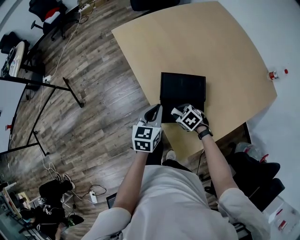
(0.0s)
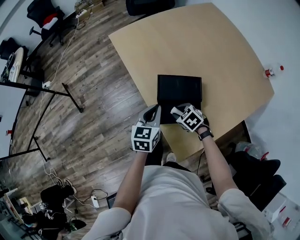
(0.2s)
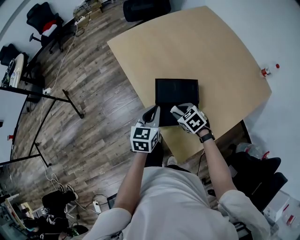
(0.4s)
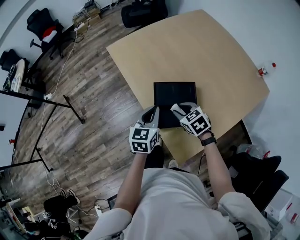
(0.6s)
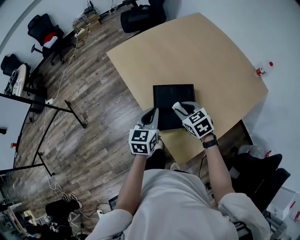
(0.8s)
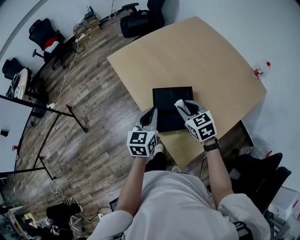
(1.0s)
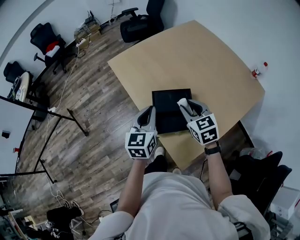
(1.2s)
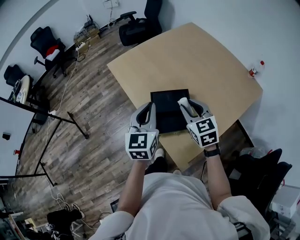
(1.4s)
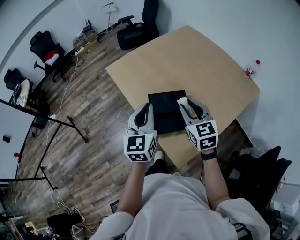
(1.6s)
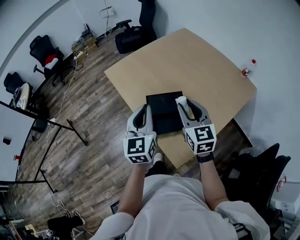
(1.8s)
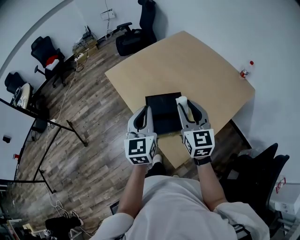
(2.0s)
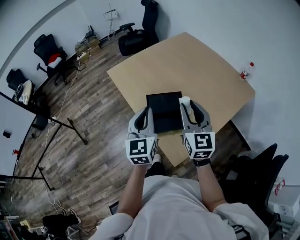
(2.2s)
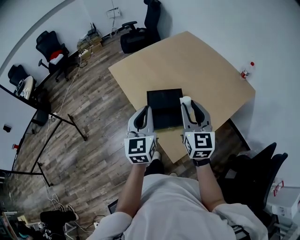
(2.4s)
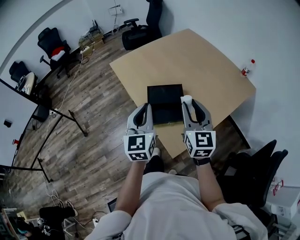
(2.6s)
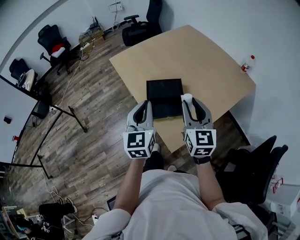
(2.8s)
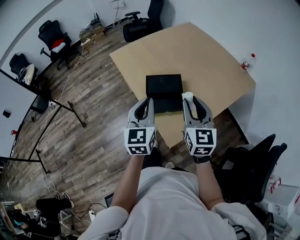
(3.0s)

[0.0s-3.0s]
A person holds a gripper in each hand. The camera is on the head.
0.0s to 1.6s: The left gripper travels upward by about 20 cm, and rotates some 20 degrees. Meanwhile the right gripper travels upward by about 30 cm, and points its fingers approximately 40 degrees further upward.
1.6s to 3.0s: Both grippers move backward, about 15 cm.

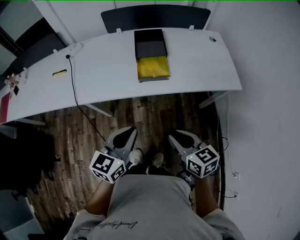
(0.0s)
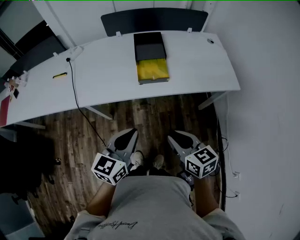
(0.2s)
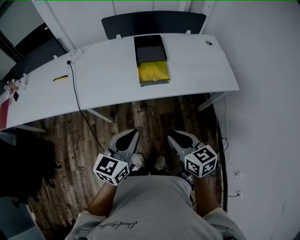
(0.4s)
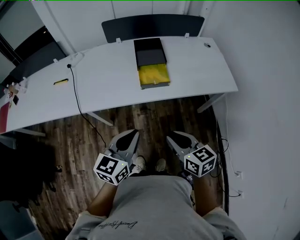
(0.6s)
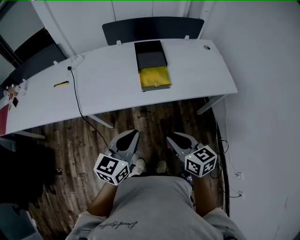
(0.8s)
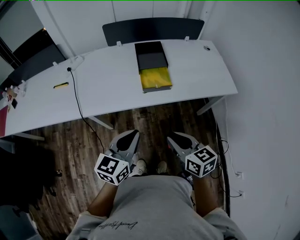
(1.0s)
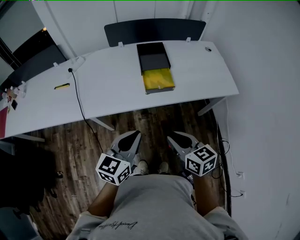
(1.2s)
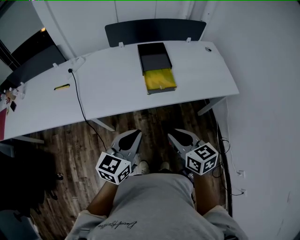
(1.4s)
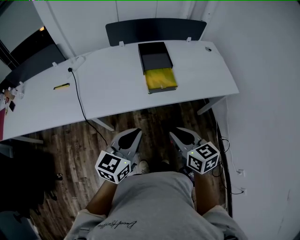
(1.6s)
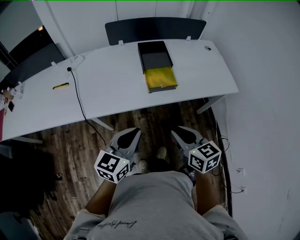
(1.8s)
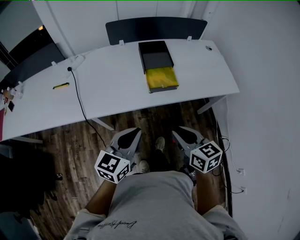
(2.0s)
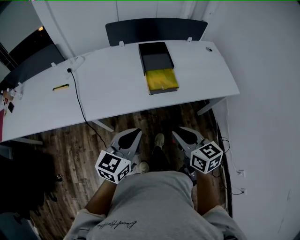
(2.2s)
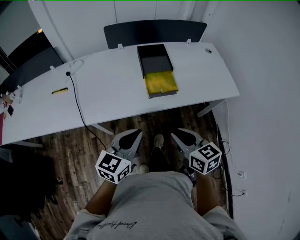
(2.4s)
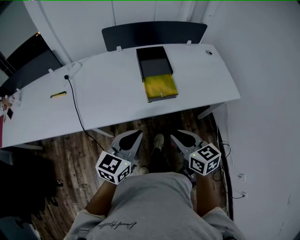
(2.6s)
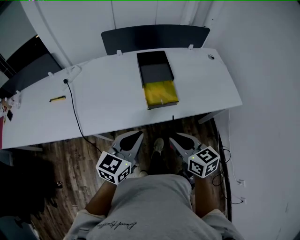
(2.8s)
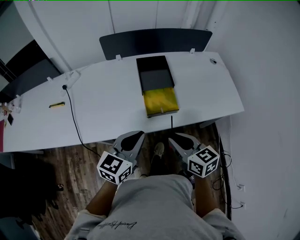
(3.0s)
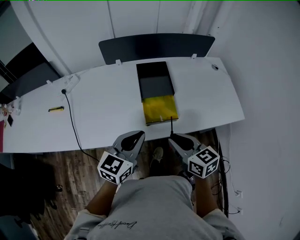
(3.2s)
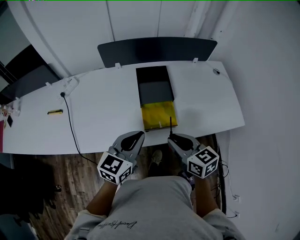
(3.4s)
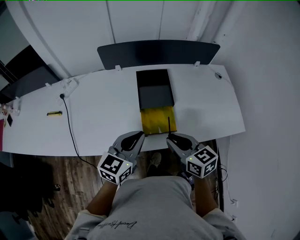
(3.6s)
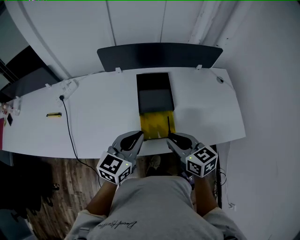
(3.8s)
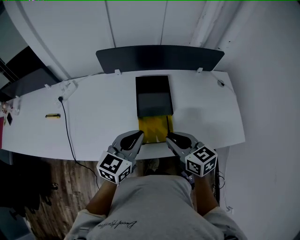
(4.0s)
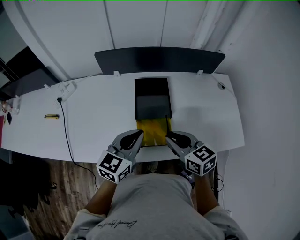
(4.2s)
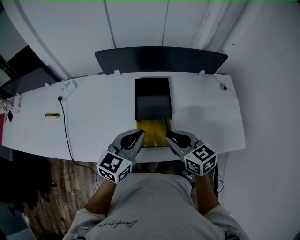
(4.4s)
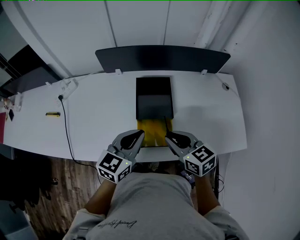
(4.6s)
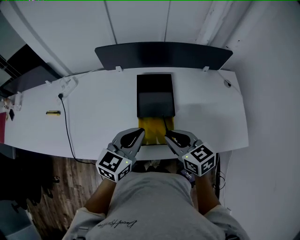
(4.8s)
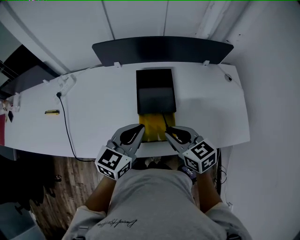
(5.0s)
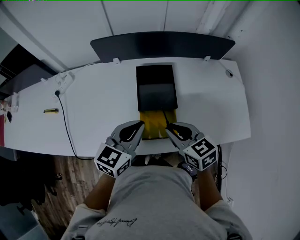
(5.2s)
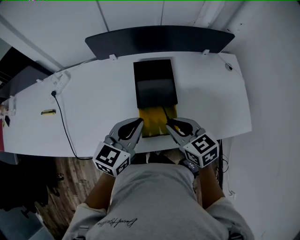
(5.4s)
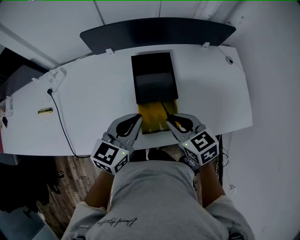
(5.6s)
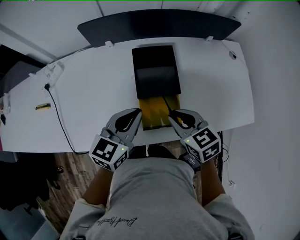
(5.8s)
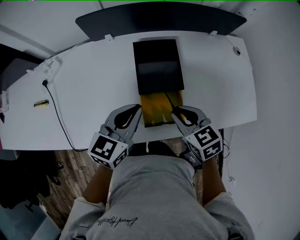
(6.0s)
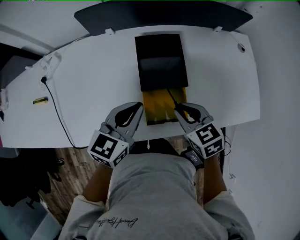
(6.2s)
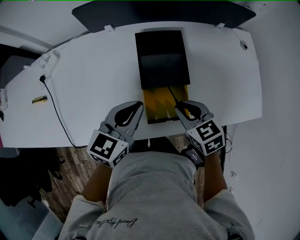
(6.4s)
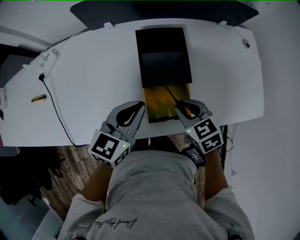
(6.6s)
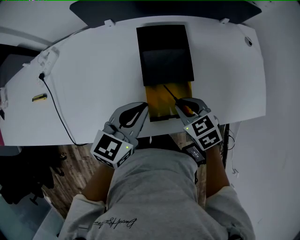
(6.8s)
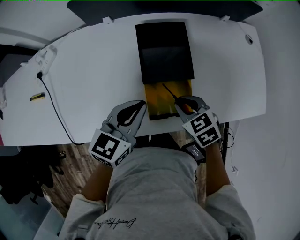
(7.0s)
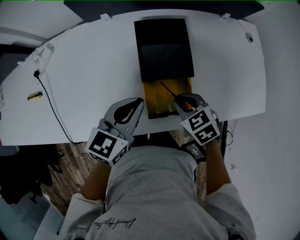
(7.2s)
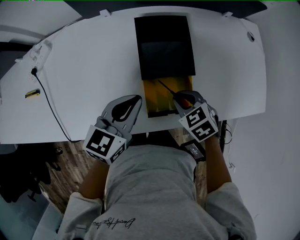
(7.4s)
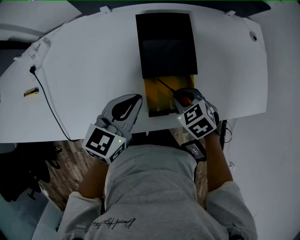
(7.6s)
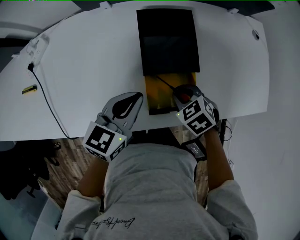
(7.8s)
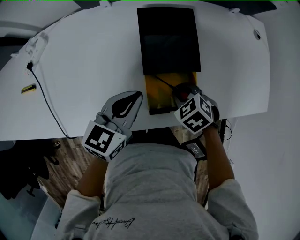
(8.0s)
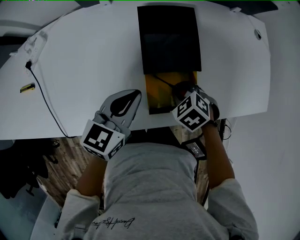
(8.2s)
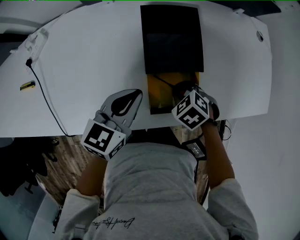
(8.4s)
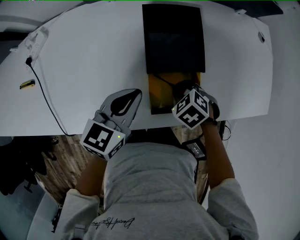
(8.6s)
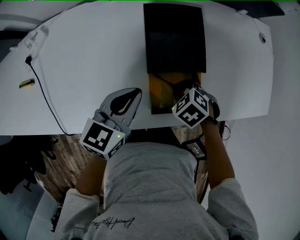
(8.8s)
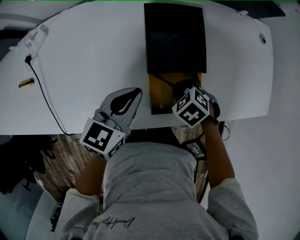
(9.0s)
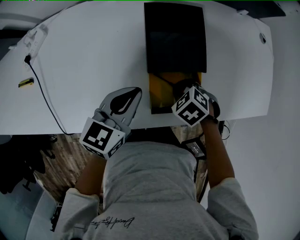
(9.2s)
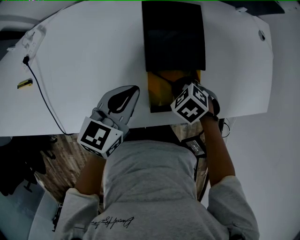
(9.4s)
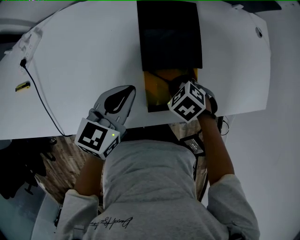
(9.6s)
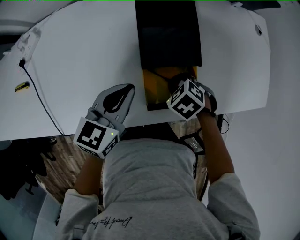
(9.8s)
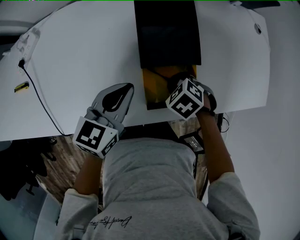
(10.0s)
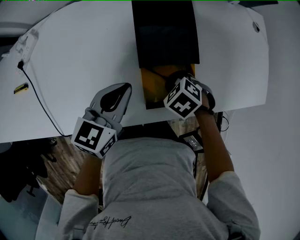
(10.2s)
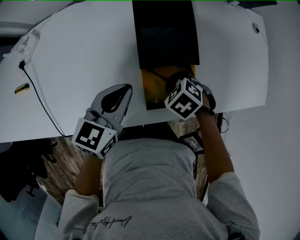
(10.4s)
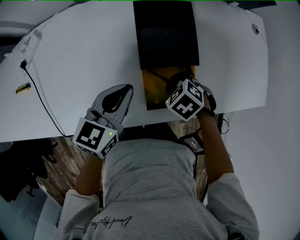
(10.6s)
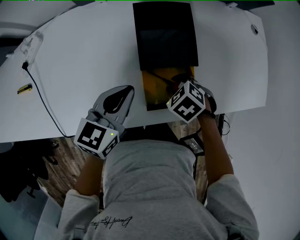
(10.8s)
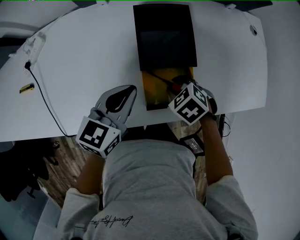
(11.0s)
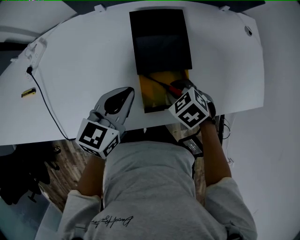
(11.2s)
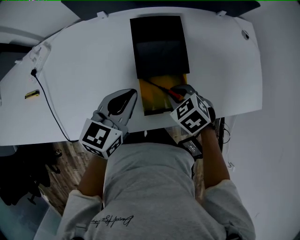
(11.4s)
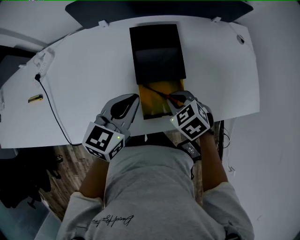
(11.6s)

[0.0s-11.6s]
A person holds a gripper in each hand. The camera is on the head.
0.0s to 1.4s: Both grippers travel together to the left, approximately 10 cm.
1.4s to 2.8s: The two grippers go approximately 10 cm forward.
2.8s to 4.4s: The two grippers go approximately 25 cm forward.
4.4s to 5.8s: The right gripper is displaced downward by about 5 cm. Meanwhile the left gripper shifts by about 5 cm.
5.8s to 7.2s: The right gripper travels downward by about 10 cm. Meanwhile the left gripper is displaced downward by some 5 cm.
7.2s to 8.8s: The right gripper moves downward, approximately 10 cm, and swivels approximately 20 degrees.
8.8s to 10.2s: The two grippers keep their place.
10.2s to 11.6s: The left gripper is displaced upward by about 5 cm. The right gripper is displaced upward by approximately 10 cm.

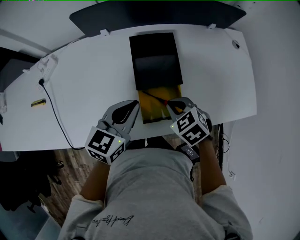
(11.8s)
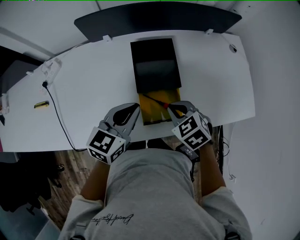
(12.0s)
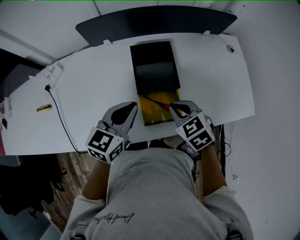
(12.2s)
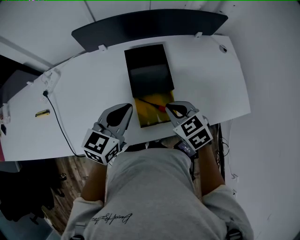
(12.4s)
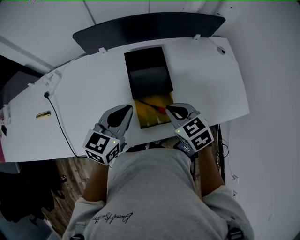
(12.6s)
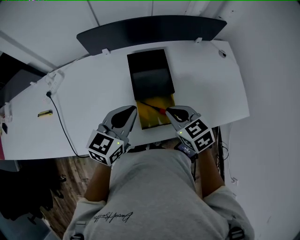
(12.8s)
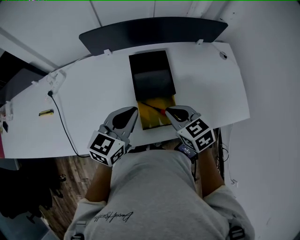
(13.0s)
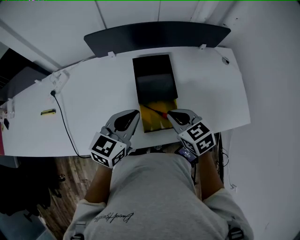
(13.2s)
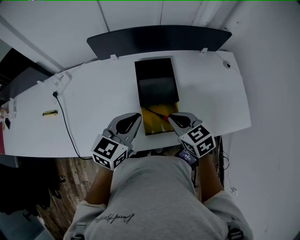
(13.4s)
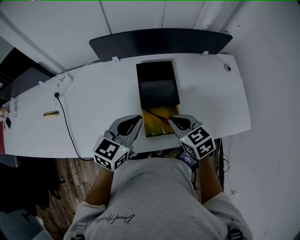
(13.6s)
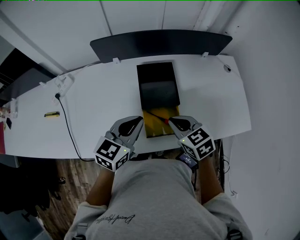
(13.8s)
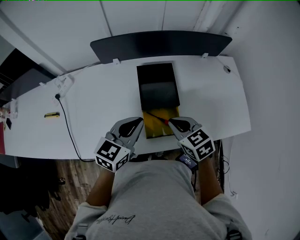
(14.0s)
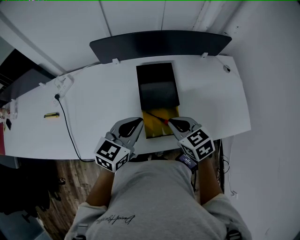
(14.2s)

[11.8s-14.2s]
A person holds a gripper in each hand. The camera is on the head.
11.8s to 13.0s: The right gripper moves upward, approximately 10 cm, and changes its angle by about 20 degrees; the left gripper goes approximately 5 cm upward.
13.0s to 14.2s: Both grippers stay put.

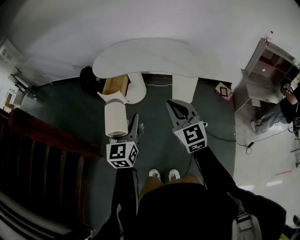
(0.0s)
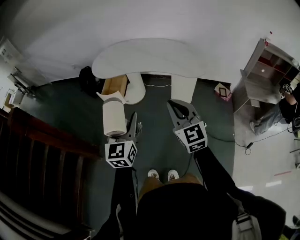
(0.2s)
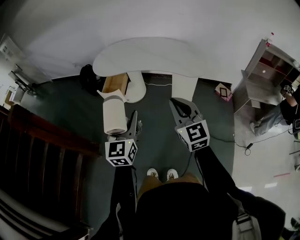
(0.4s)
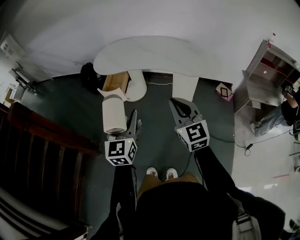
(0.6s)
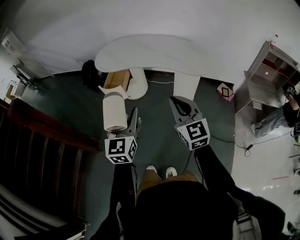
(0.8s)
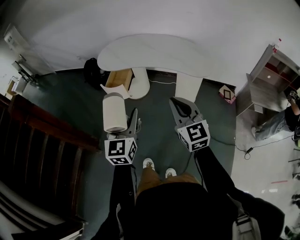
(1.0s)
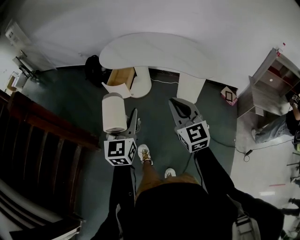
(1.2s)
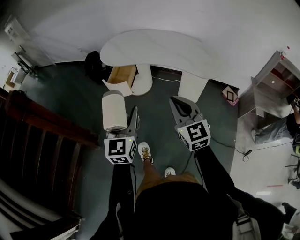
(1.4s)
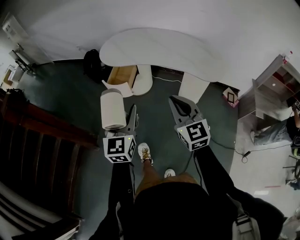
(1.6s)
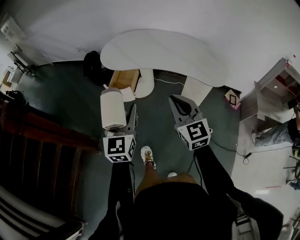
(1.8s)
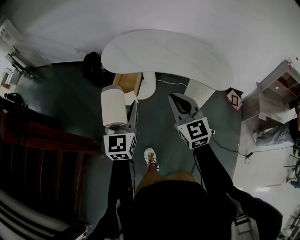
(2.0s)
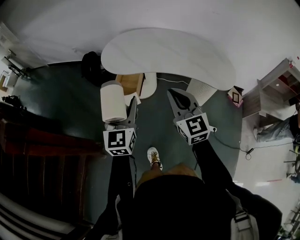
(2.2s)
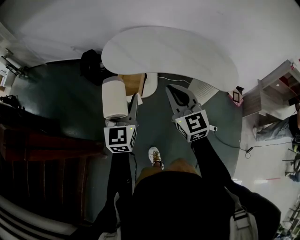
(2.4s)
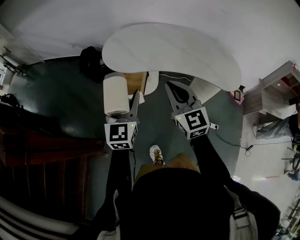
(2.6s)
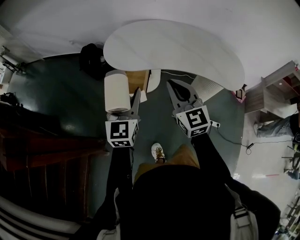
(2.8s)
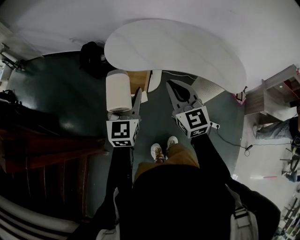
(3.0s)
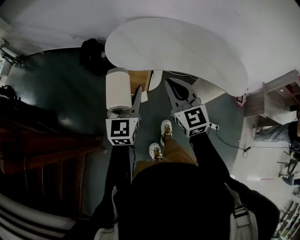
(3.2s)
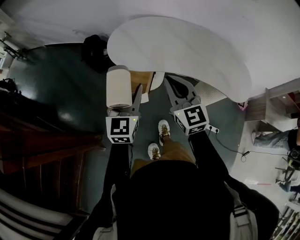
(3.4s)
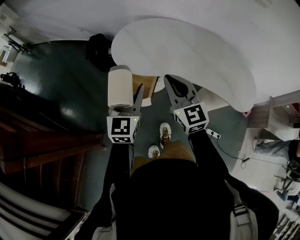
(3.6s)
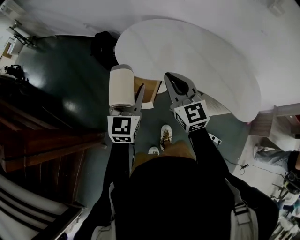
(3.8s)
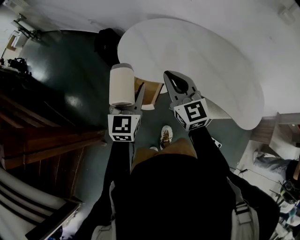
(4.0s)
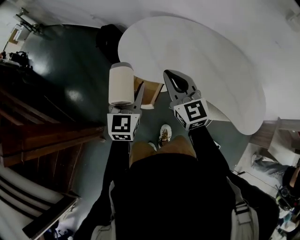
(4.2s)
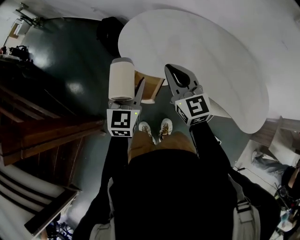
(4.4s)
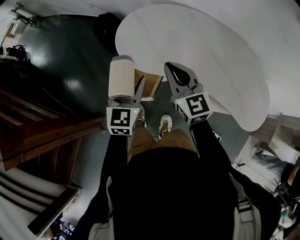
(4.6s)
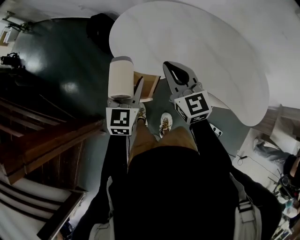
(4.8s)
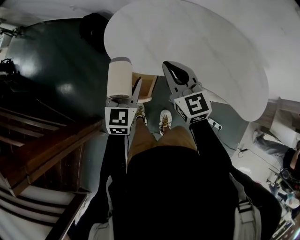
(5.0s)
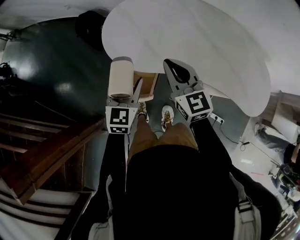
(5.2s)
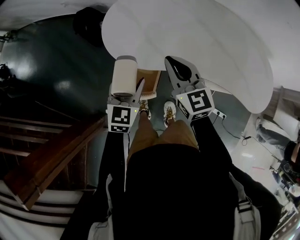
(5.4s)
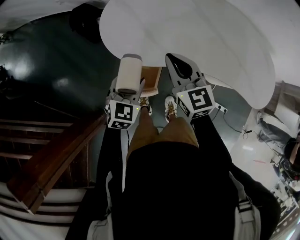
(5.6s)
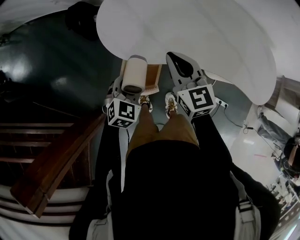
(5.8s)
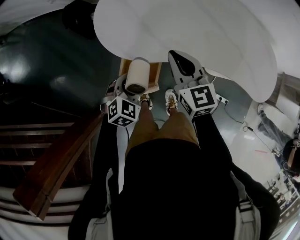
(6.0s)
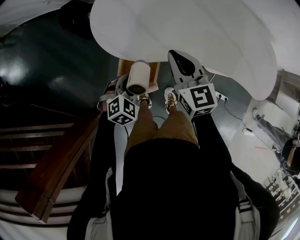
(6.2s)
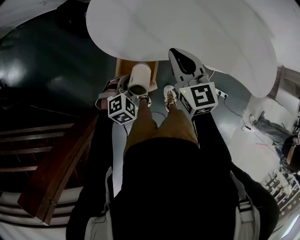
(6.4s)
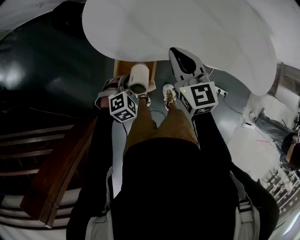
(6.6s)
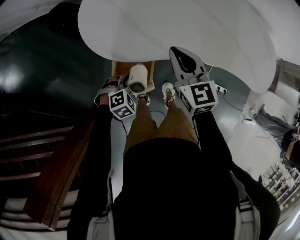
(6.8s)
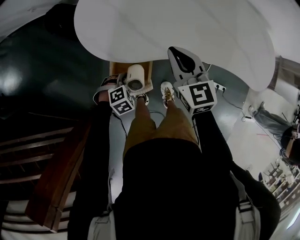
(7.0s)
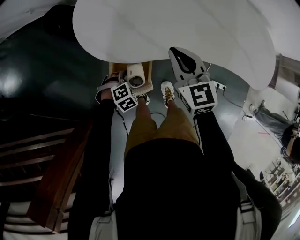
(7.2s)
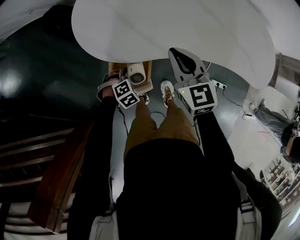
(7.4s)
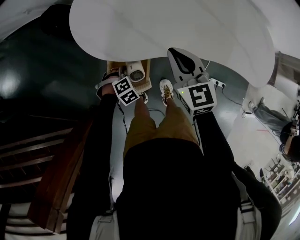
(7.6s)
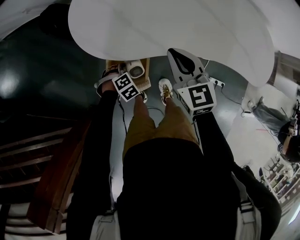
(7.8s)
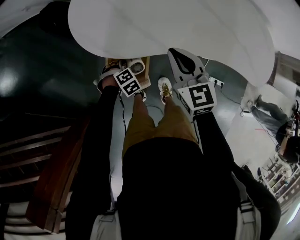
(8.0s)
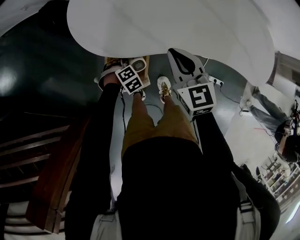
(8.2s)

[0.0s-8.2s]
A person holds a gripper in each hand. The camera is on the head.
0.0s to 1.6s: Both grippers travel together forward and to the left, about 10 cm.
1.6s to 3.2s: The grippers both shift forward and to the left by about 30 cm.
3.2s to 5.0s: The left gripper heads forward and downward, covering about 20 cm. The right gripper is displaced forward by about 20 cm.
5.0s to 6.6s: The left gripper travels downward by roughly 20 cm, and tips its fingers downward by about 50 degrees. Meanwhile the right gripper moves downward, approximately 10 cm.
6.6s to 8.2s: The left gripper moves downward, approximately 10 cm.
